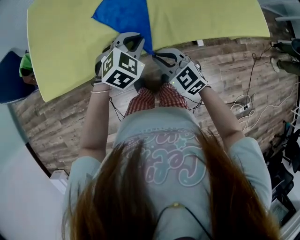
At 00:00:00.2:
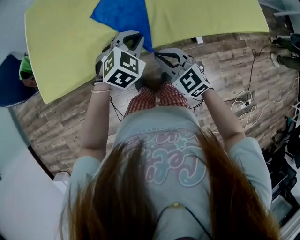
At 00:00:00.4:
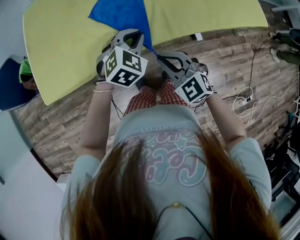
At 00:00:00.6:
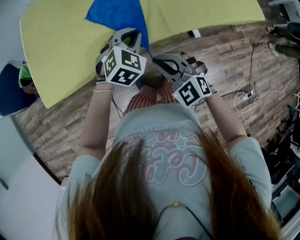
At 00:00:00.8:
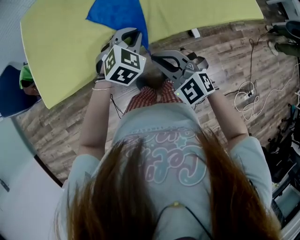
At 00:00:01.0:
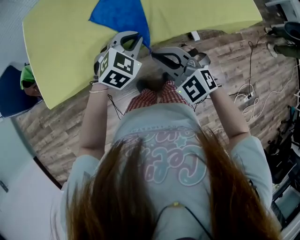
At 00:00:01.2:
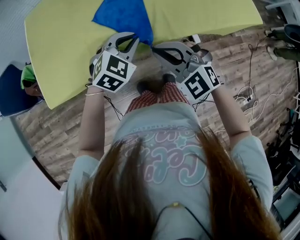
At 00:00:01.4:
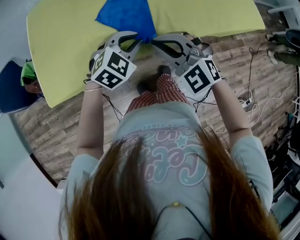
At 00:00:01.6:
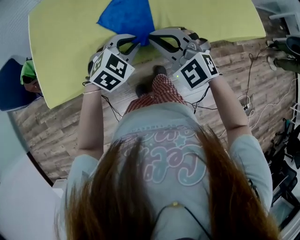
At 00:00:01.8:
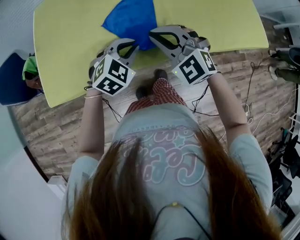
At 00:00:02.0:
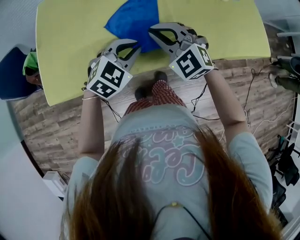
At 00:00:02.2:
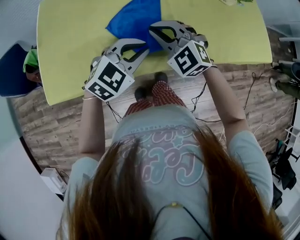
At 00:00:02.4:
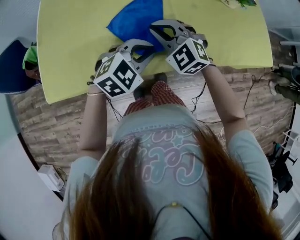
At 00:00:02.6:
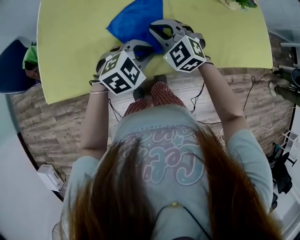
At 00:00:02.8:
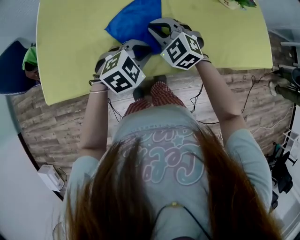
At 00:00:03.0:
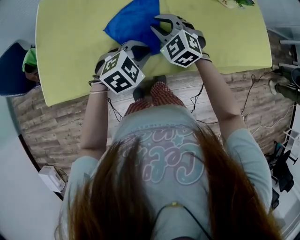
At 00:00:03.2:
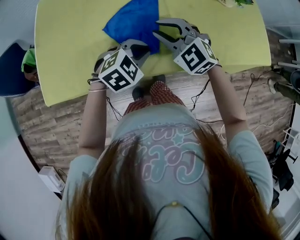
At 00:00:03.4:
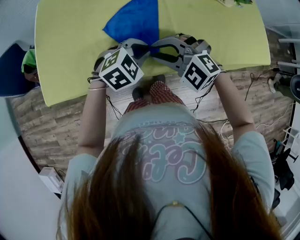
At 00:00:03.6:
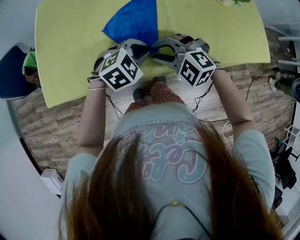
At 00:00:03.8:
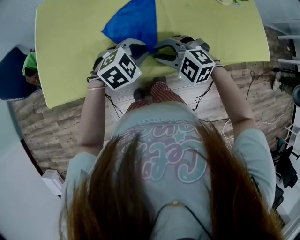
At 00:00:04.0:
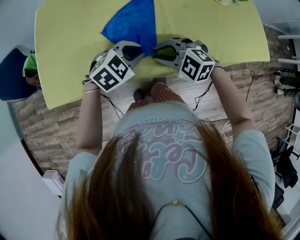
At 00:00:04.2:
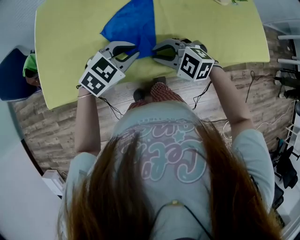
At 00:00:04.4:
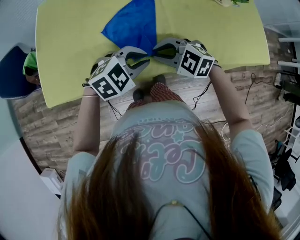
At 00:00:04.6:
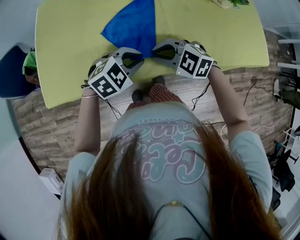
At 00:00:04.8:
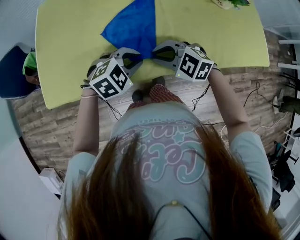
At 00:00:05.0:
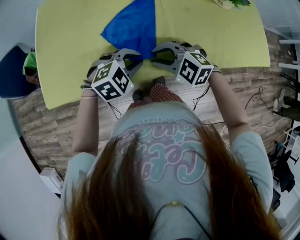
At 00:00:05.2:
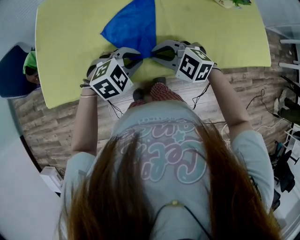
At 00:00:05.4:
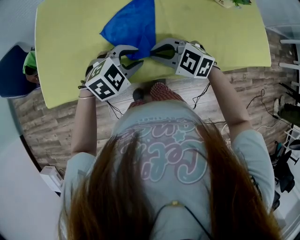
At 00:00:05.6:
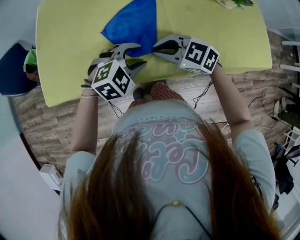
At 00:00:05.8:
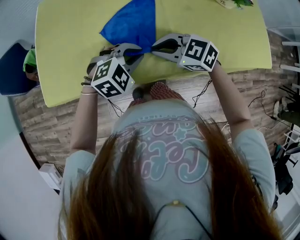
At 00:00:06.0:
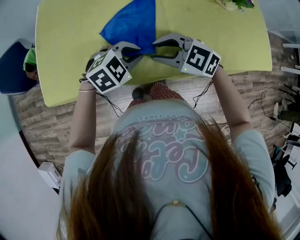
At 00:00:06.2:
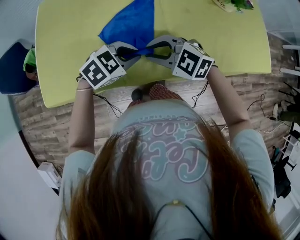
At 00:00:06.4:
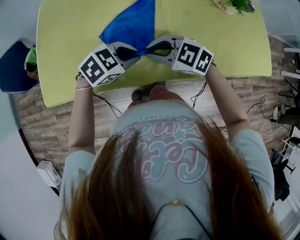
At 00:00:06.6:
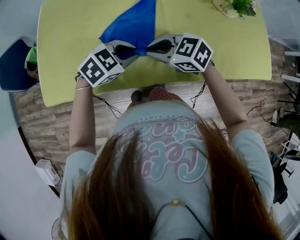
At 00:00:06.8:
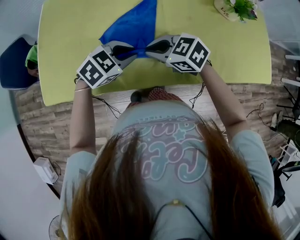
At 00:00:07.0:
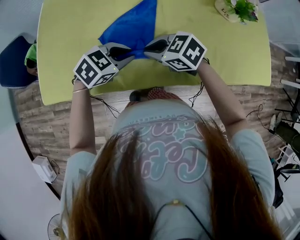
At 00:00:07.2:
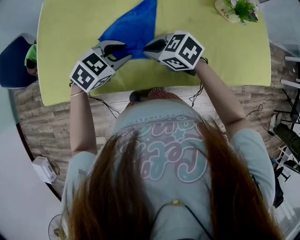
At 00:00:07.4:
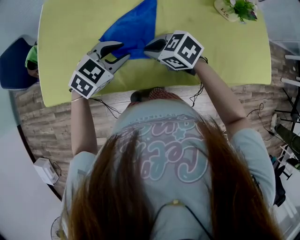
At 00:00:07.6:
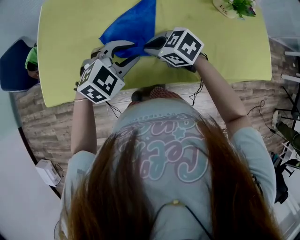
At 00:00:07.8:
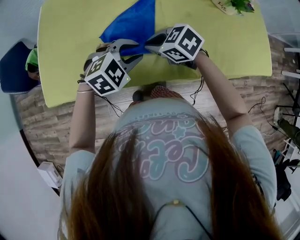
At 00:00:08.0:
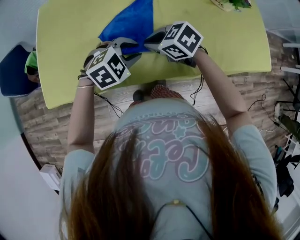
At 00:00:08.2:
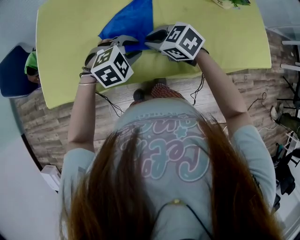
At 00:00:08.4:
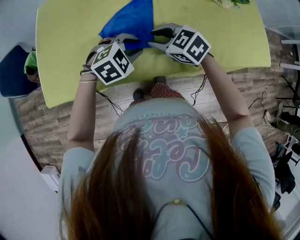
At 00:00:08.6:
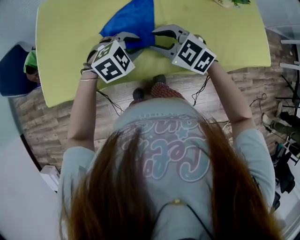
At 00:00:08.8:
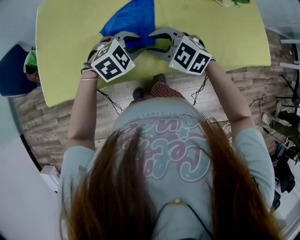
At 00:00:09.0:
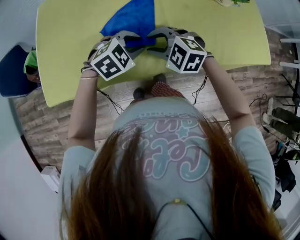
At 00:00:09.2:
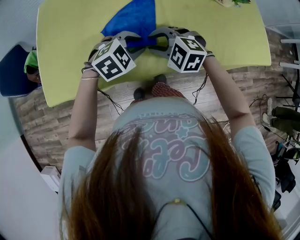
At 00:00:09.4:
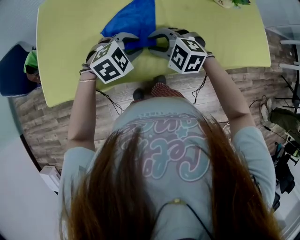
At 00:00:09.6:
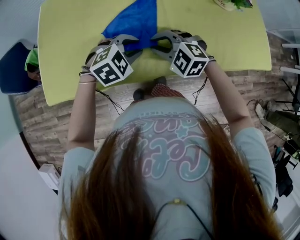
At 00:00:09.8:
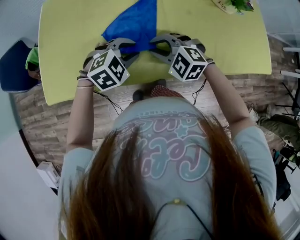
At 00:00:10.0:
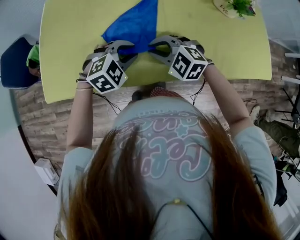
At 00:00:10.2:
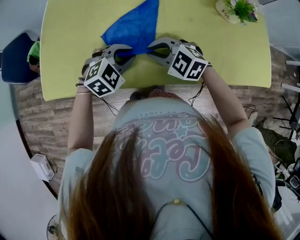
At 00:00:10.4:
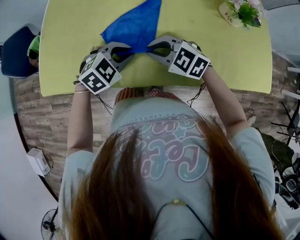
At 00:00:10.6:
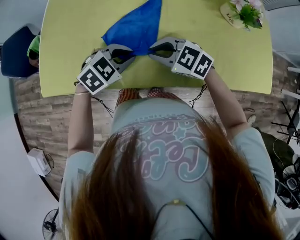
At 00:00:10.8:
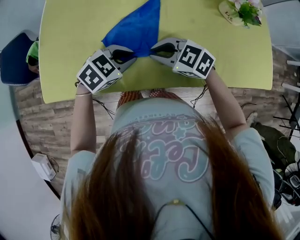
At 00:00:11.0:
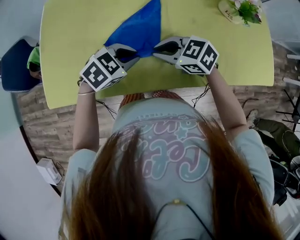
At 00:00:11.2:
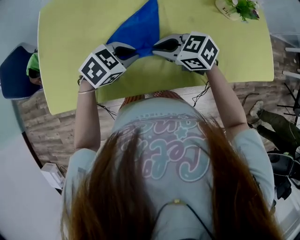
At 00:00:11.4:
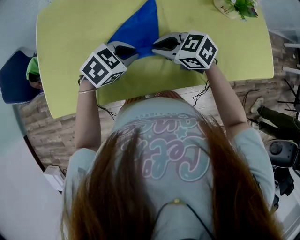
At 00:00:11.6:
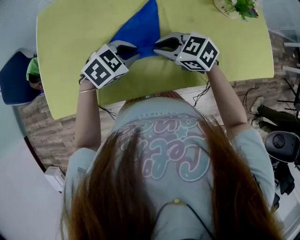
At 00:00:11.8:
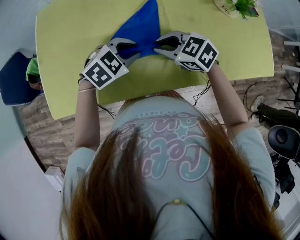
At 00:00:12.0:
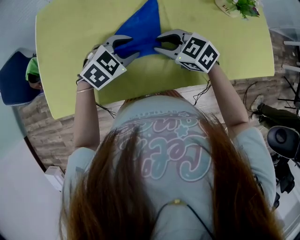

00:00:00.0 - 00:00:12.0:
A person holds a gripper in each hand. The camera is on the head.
00:00:00.0 - 00:00:01.6: The right gripper goes roughly 15 cm upward and forward, and swivels some 30 degrees.
00:00:01.6 - 00:00:03.0: The right gripper goes some 15 cm forward and downward.
00:00:03.0 - 00:00:04.4: The right gripper shifts by approximately 10 cm, and swivels some 30 degrees.
00:00:04.4 - 00:00:06.0: The left gripper opens, then closes again.
00:00:06.0 - 00:00:07.6: The right gripper moves about 5 cm, and rotates roughly 20 degrees, while the left gripper shifts by some 5 cm.
00:00:07.6 - 00:00:09.0: The right gripper changes its angle by roughly 30 degrees. Meanwhile the left gripper goes approximately 5 cm downward.
00:00:09.0 - 00:00:10.4: There are only small adjustments of the grippers.
00:00:10.4 - 00:00:12.0: The left gripper shifts by some 5 cm. Meanwhile the right gripper changes place by roughly 5 cm, and swivels roughly 20 degrees.

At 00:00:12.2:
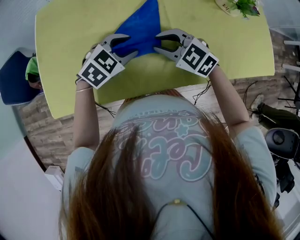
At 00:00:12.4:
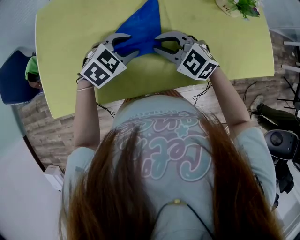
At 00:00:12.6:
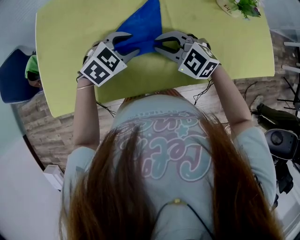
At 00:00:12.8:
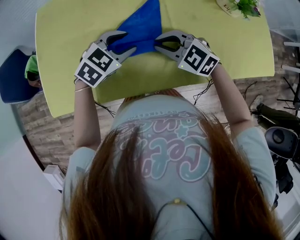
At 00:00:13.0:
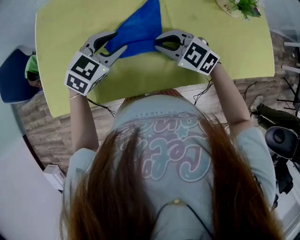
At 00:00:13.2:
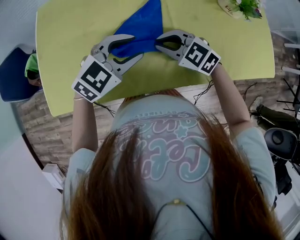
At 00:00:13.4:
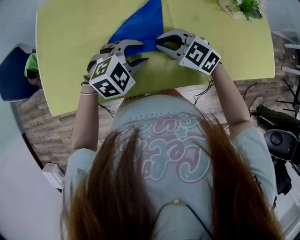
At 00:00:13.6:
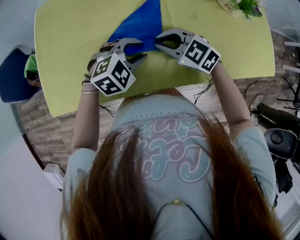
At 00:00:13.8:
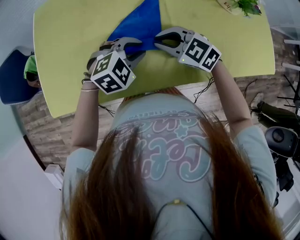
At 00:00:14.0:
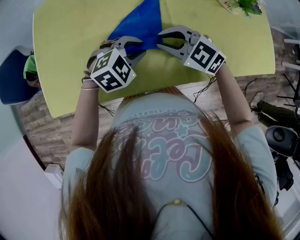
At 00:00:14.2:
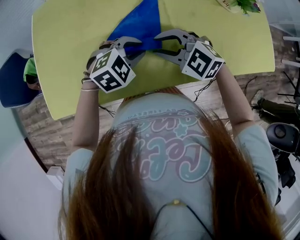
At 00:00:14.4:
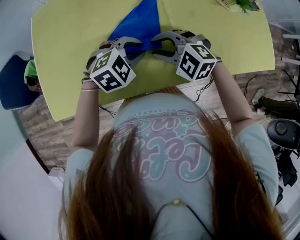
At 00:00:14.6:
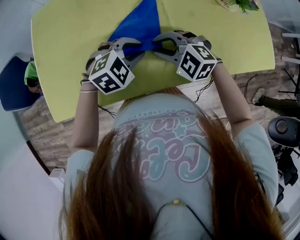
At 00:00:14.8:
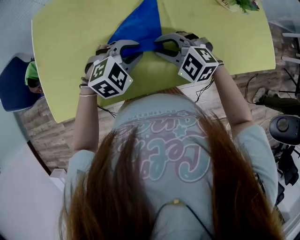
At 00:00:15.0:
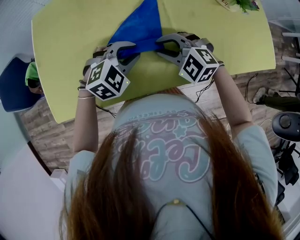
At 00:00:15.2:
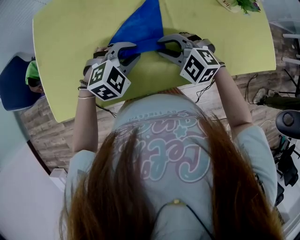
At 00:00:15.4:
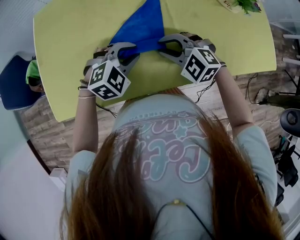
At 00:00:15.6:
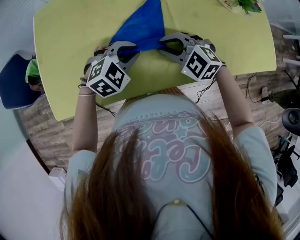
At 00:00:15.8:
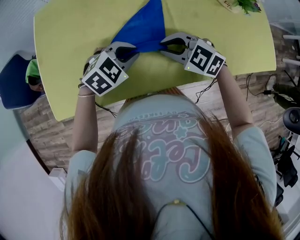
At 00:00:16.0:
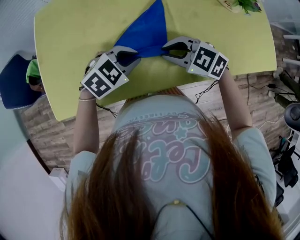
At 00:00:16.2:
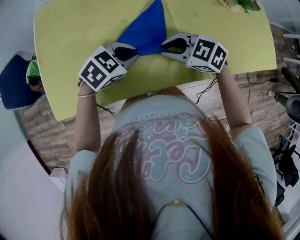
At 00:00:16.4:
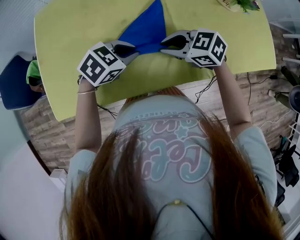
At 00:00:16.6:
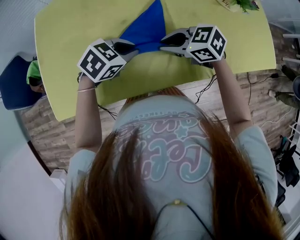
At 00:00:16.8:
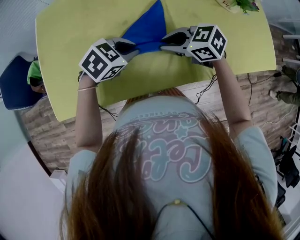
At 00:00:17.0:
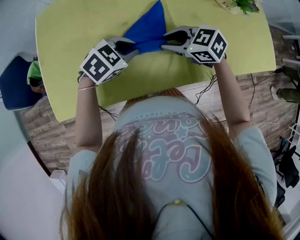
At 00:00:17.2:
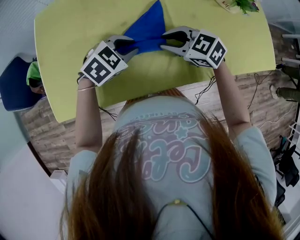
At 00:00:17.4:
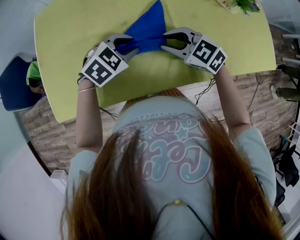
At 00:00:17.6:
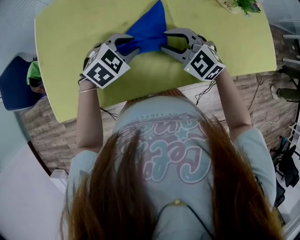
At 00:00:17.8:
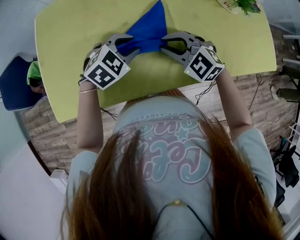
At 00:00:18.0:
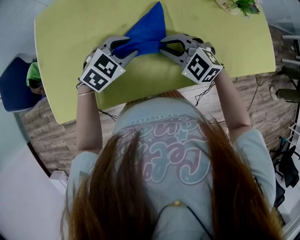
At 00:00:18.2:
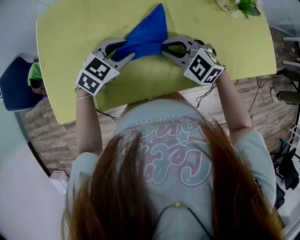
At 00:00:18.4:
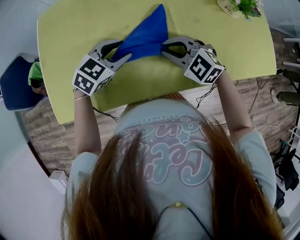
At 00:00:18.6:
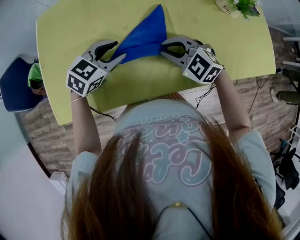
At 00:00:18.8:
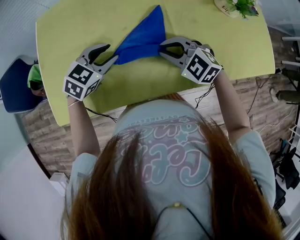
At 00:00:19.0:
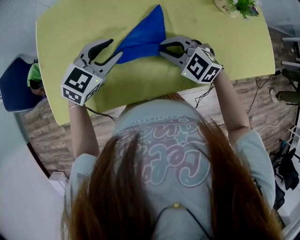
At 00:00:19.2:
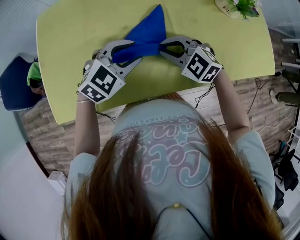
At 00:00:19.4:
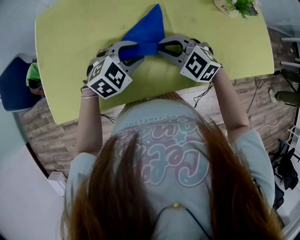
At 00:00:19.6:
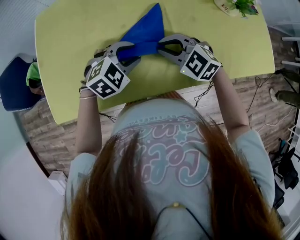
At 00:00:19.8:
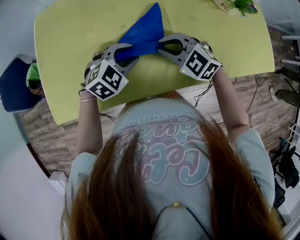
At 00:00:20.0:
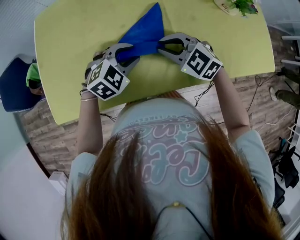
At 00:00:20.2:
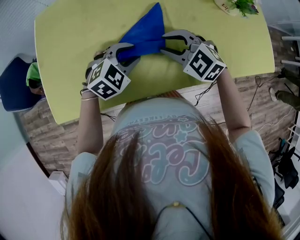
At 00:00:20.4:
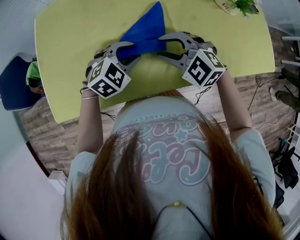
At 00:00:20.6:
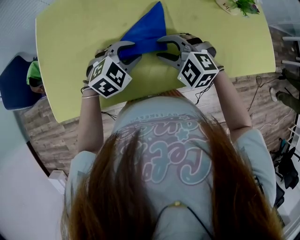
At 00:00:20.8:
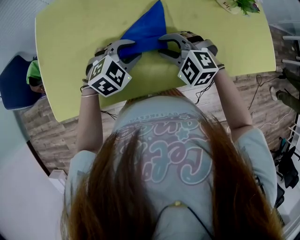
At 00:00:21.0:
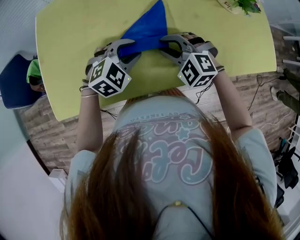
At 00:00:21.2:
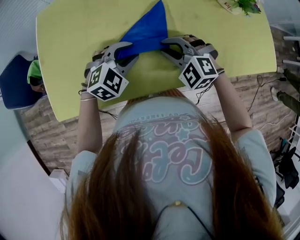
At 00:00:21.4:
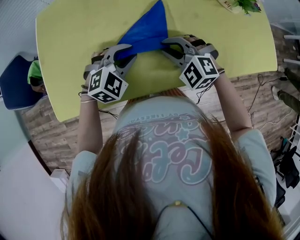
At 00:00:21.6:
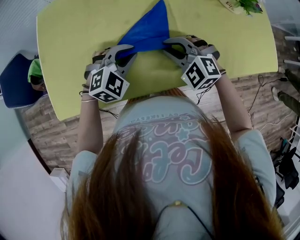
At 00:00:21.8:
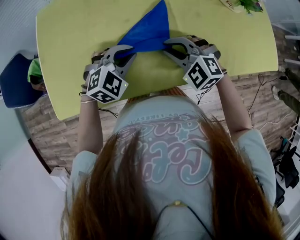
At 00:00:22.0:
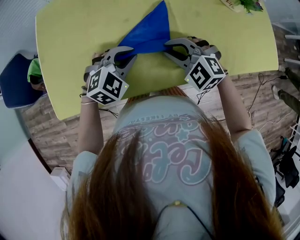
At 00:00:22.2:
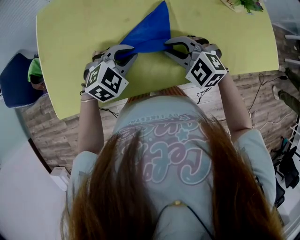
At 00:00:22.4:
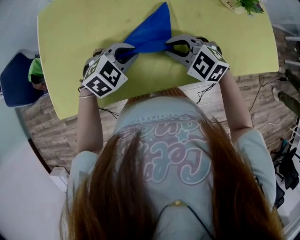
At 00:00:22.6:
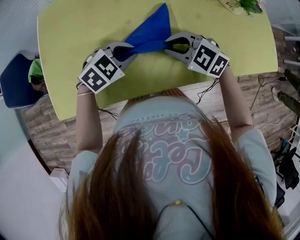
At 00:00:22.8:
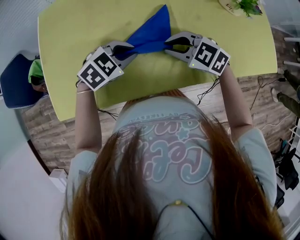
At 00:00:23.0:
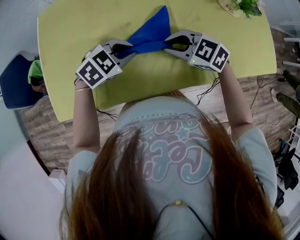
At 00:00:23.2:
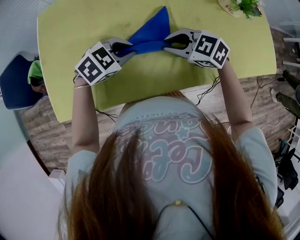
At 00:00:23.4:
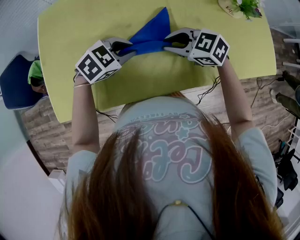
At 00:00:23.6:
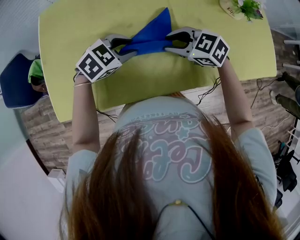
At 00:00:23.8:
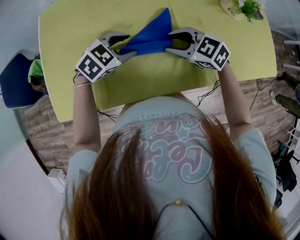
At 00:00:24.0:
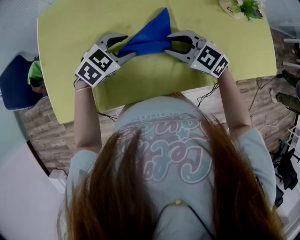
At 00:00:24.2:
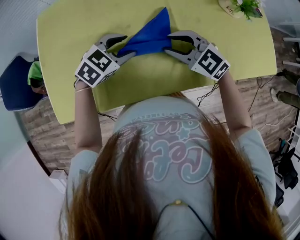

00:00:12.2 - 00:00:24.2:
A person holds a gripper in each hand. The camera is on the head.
00:00:13.8 - 00:00:15.2: The right gripper turns by approximately 20 degrees.
00:00:15.2 - 00:00:16.6: The left gripper turns by roughly 30 degrees. Meanwhile the right gripper swivels about 40 degrees.
00:00:16.6 - 00:00:18.2: The left gripper opens, while the right gripper rotates about 40 degrees.
00:00:18.2 - 00:00:19.8: The left gripper goes to the left and returns, some 5 cm each way.
00:00:21.2 - 00:00:22.6: The left gripper closes its fingers. The right gripper swivels approximately 20 degrees.
00:00:22.6 - 00:00:24.2: The left gripper opens its fingers.
